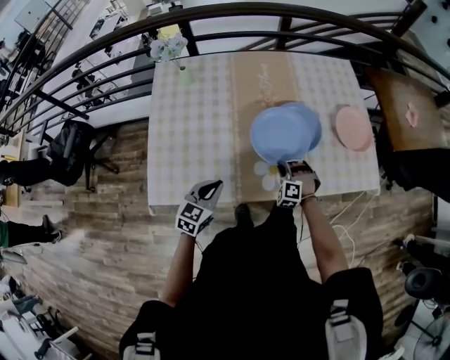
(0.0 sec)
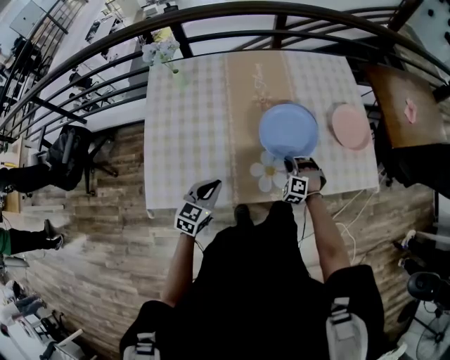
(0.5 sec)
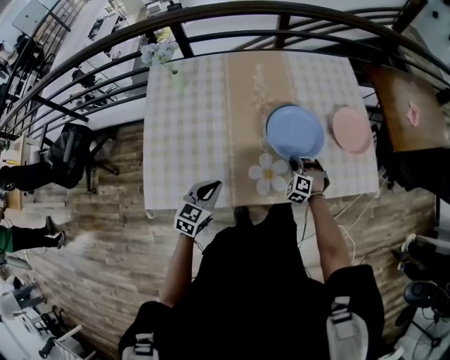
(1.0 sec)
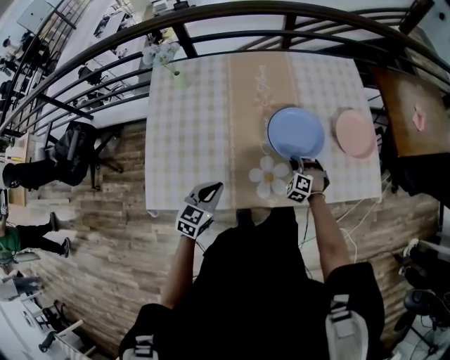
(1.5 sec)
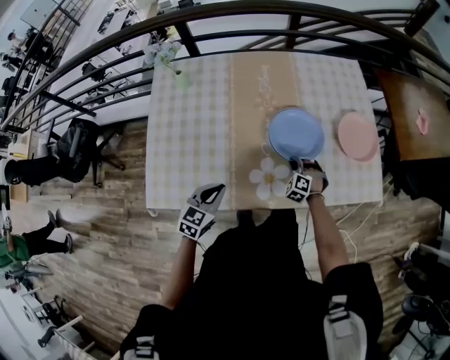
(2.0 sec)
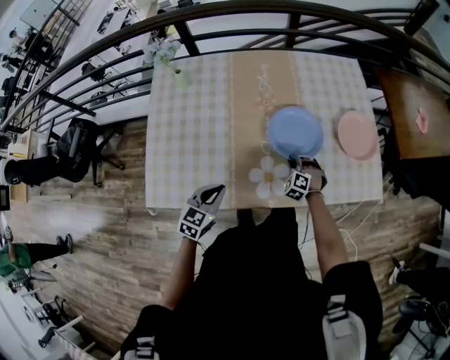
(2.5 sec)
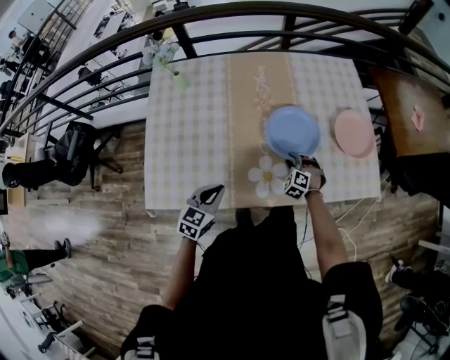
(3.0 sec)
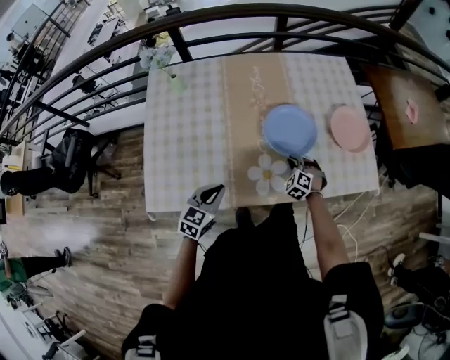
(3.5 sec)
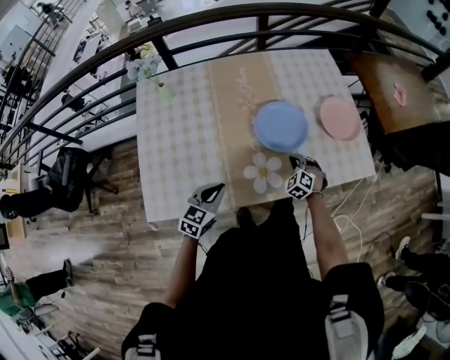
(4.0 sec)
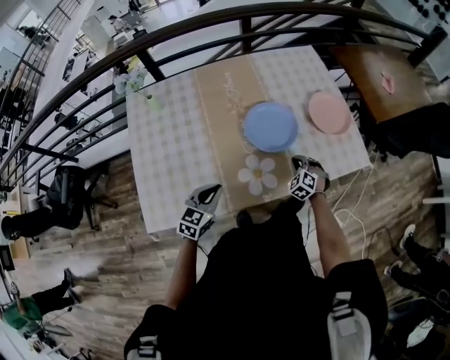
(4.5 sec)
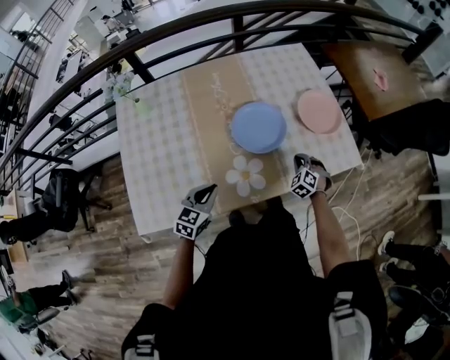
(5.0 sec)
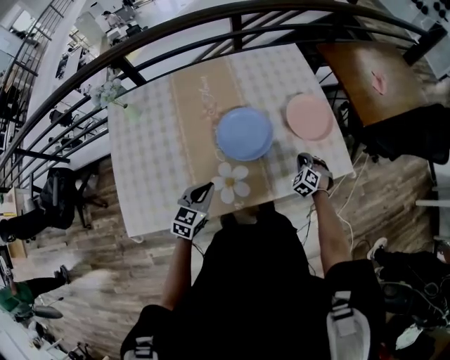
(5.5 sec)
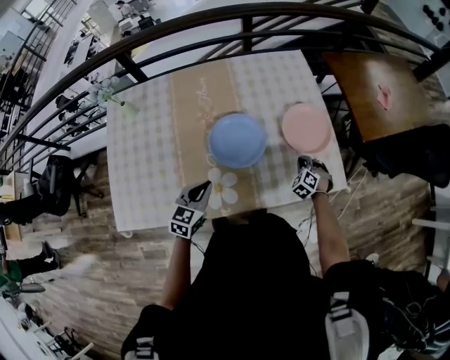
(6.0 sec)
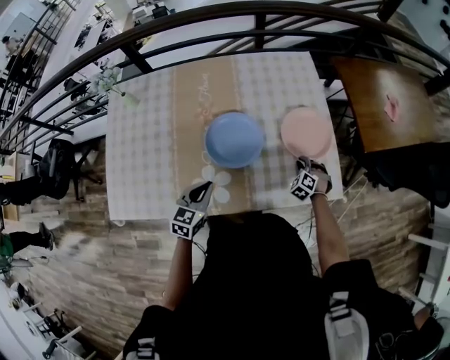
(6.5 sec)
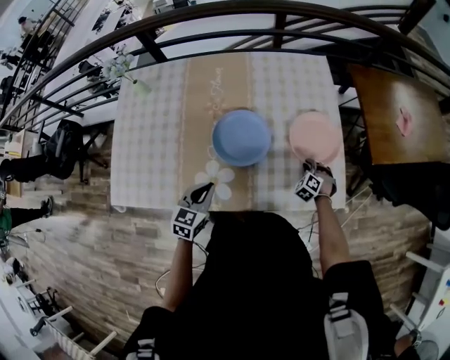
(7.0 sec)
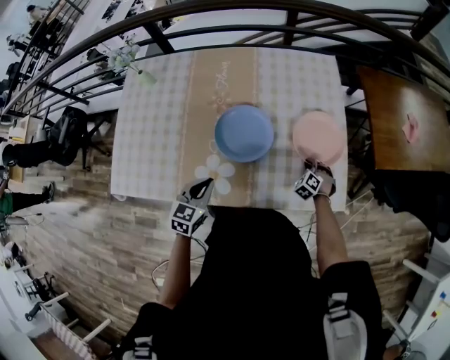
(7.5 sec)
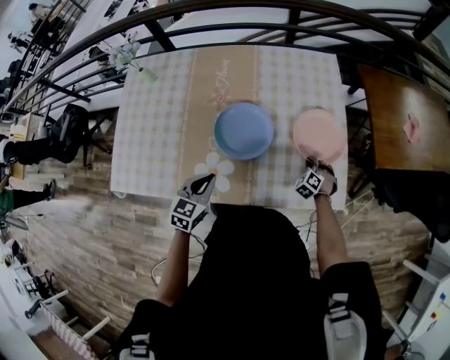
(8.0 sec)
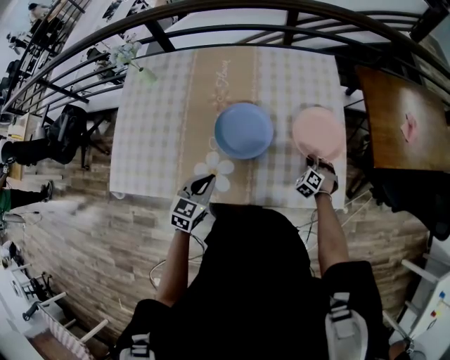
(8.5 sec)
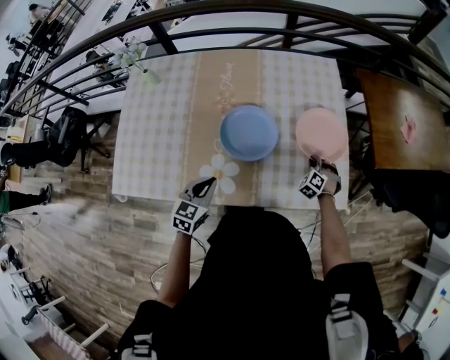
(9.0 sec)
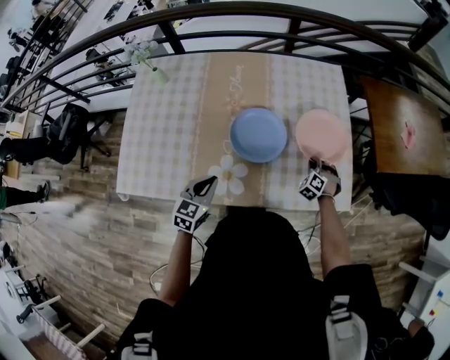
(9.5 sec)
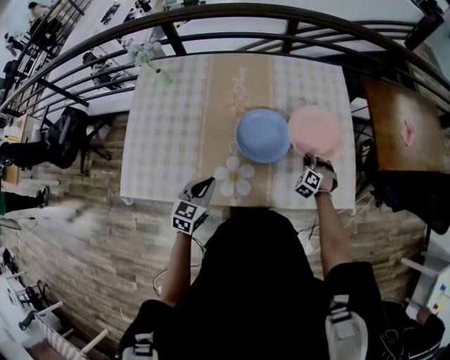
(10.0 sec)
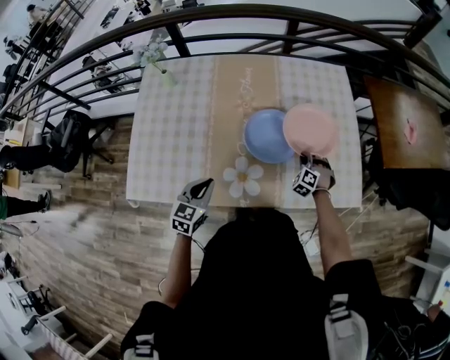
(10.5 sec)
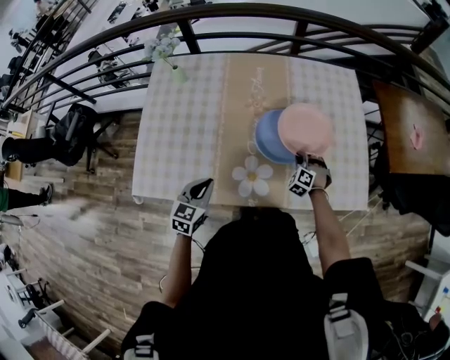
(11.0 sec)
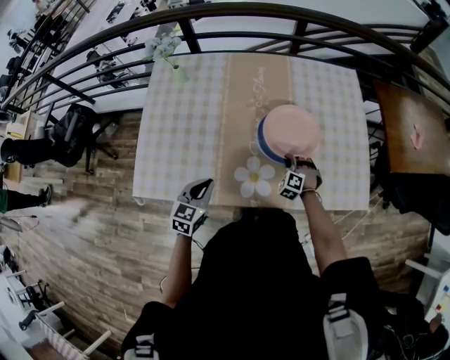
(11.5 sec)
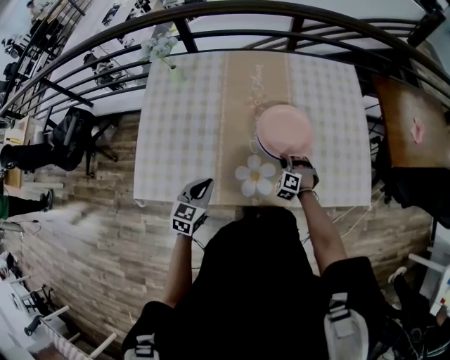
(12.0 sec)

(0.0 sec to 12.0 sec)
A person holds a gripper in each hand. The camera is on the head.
0.0 sec - 2.0 sec: The left gripper changes place by about 5 cm. The right gripper travels forward and to the right by some 10 cm.
2.0 sec - 4.0 sec: The right gripper shifts by approximately 5 cm, and opens and closes again.
4.0 sec - 6.0 sec: The right gripper travels to the right and forward by approximately 25 cm. The left gripper heads forward and to the right, covering about 20 cm.
6.0 sec - 8.0 sec: The right gripper shifts by about 5 cm. The left gripper shifts some 5 cm to the right.
8.0 sec - 10.0 sec: The right gripper heads to the left and upward, covering roughly 10 cm; the left gripper shifts roughly 10 cm to the left and backward.
10.0 sec - 12.0 sec: The right gripper is displaced to the left by roughly 20 cm. The left gripper is displaced to the left by roughly 10 cm.

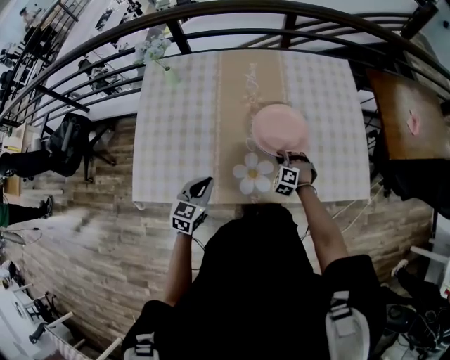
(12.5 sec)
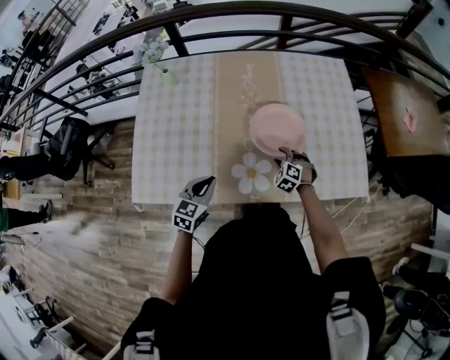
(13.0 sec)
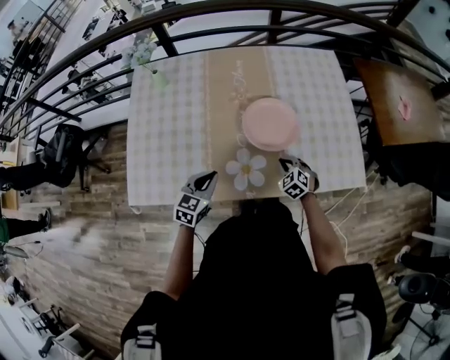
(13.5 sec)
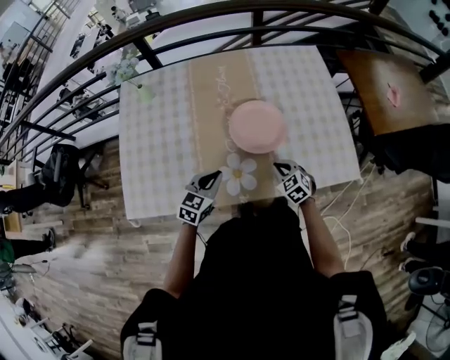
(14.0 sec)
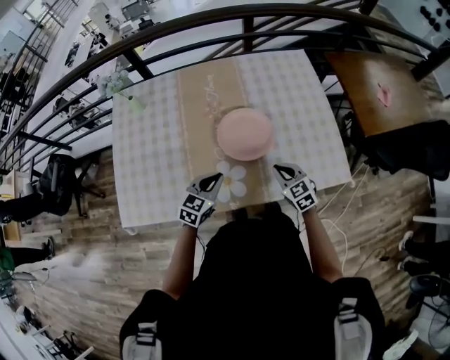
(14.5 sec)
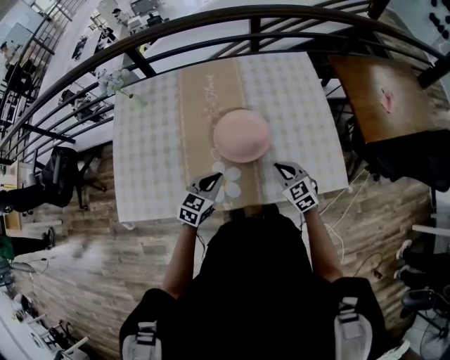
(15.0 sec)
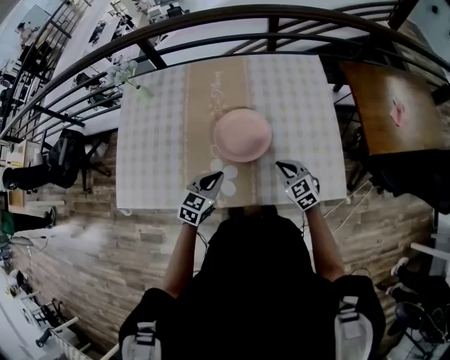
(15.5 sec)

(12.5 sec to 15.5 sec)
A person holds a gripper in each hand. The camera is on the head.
12.5 sec - 14.0 sec: The right gripper shifts about 10 cm to the right, backward and upward, rotates around the line of its fingers by about 40 degrees, clockwise from behind, and opens and closes again; the left gripper heads to the right, covering roughly 10 cm.
14.0 sec - 15.5 sec: The right gripper heads to the right and upward, covering roughly 15 cm. Meanwhile the left gripper is displaced to the right by some 10 cm.

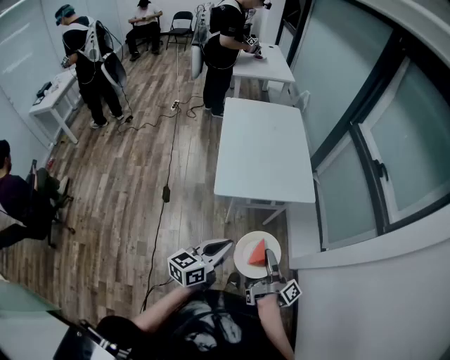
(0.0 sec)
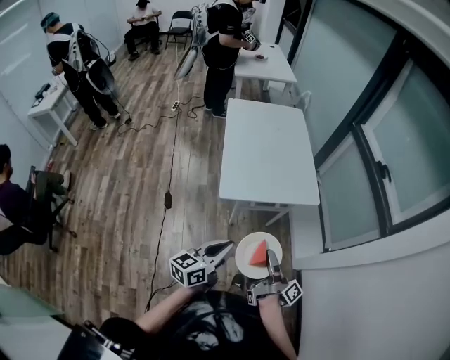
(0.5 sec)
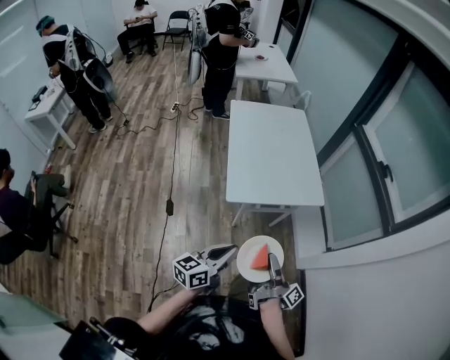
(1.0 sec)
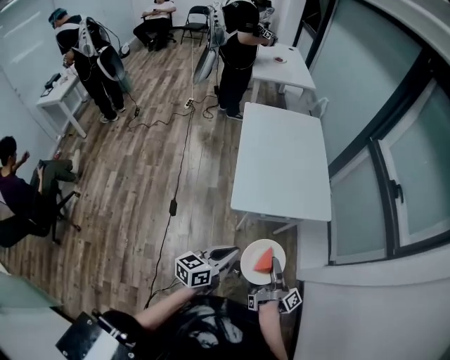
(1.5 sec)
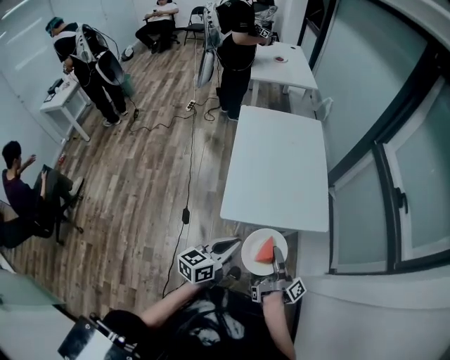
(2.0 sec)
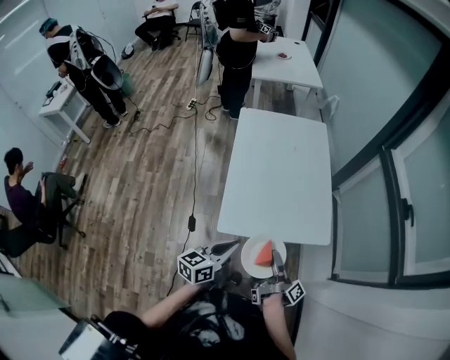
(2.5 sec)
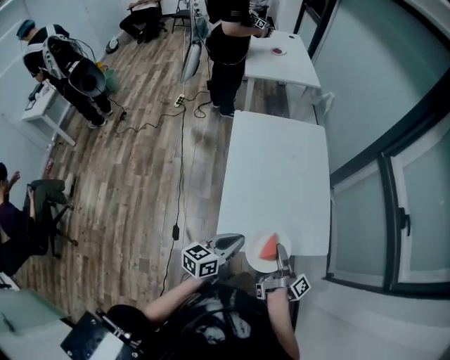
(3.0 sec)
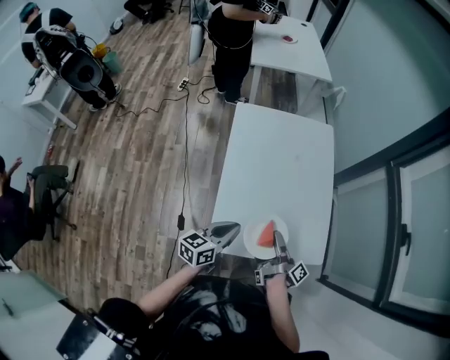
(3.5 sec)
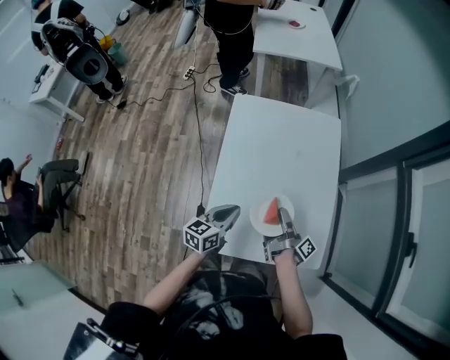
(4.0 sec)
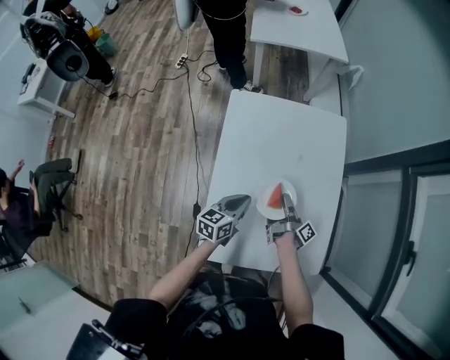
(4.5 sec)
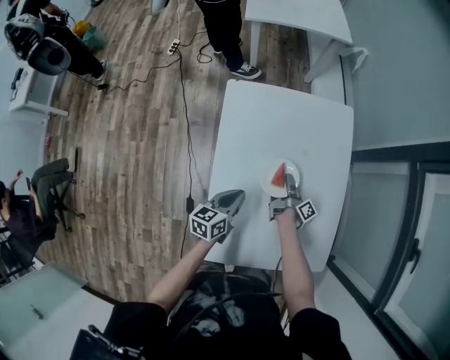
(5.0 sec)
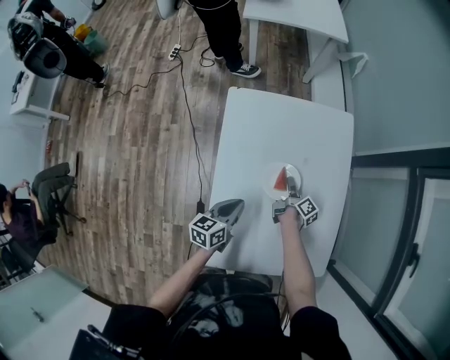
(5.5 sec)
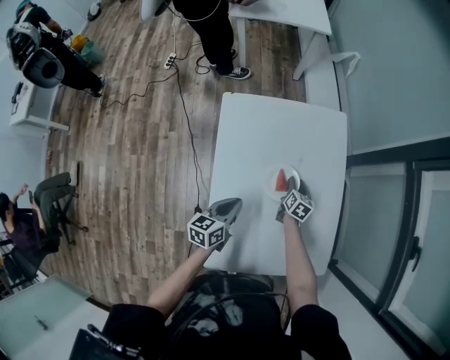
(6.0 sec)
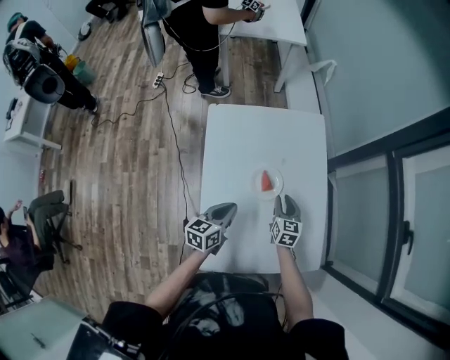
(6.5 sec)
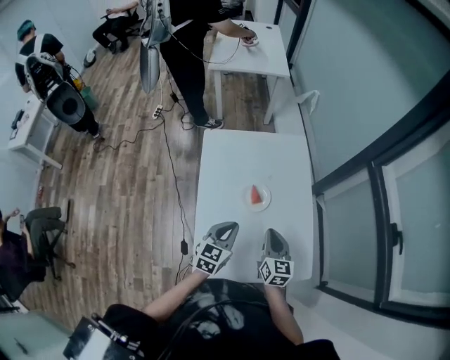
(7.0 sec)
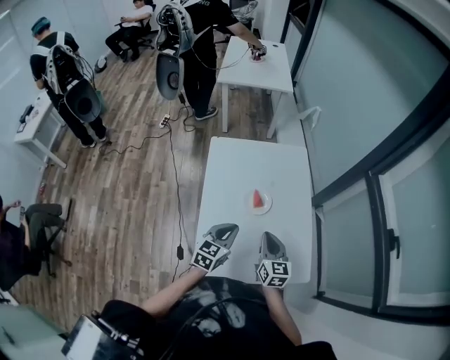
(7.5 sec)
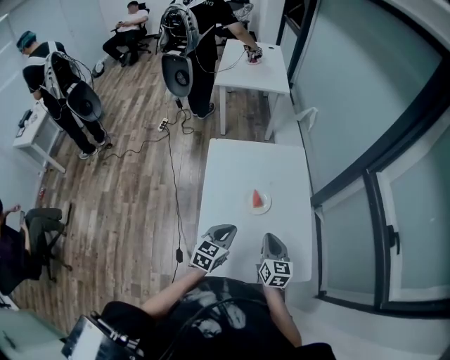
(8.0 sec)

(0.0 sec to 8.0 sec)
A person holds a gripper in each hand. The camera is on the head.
0.0 sec - 2.0 sec: The left gripper changes place by roughly 15 cm.
2.0 sec - 4.0 sec: The left gripper moves some 40 cm.
4.0 sec - 6.0 sec: The left gripper changes place by approximately 15 cm.
6.0 sec - 8.0 sec: The left gripper changes place by about 15 cm, and changes its angle by about 30 degrees.

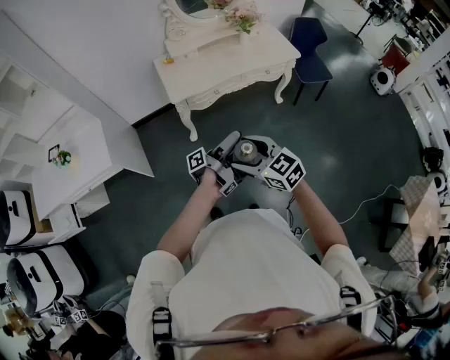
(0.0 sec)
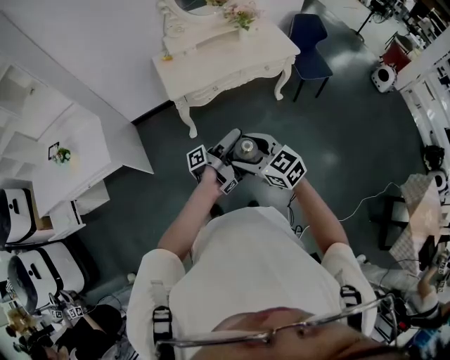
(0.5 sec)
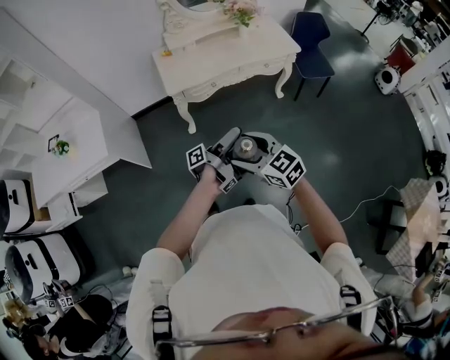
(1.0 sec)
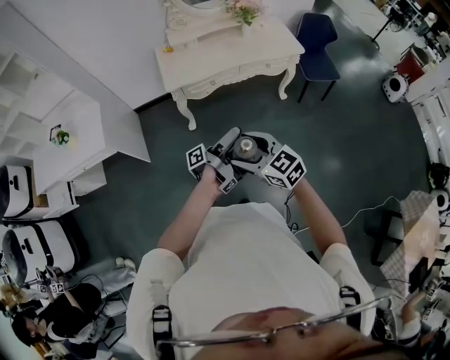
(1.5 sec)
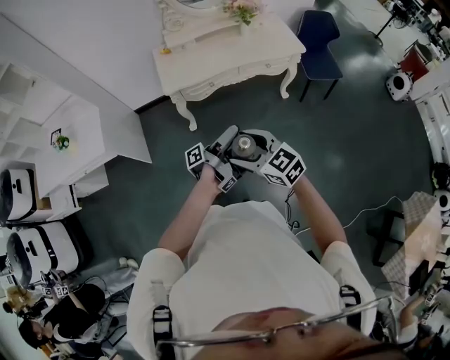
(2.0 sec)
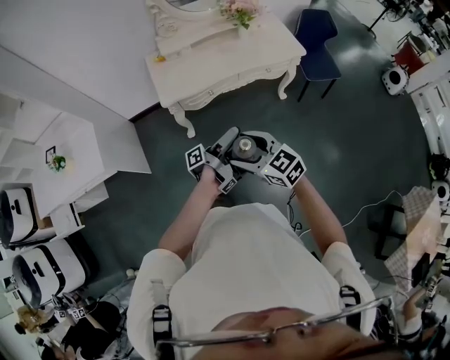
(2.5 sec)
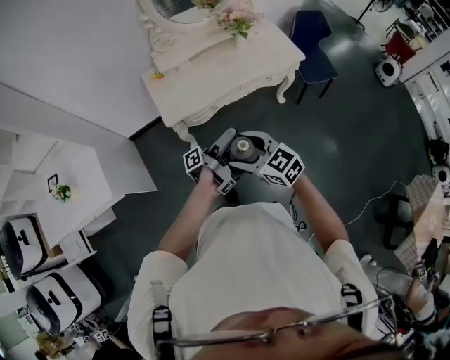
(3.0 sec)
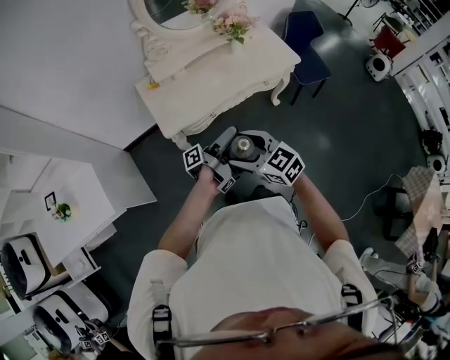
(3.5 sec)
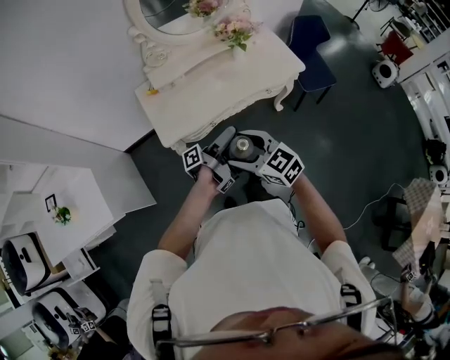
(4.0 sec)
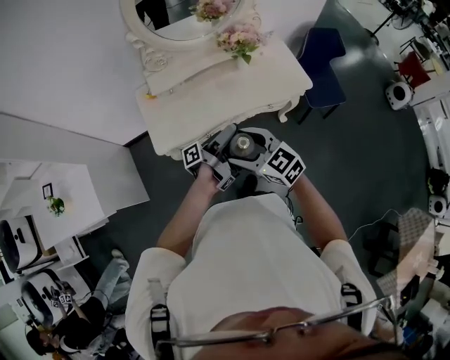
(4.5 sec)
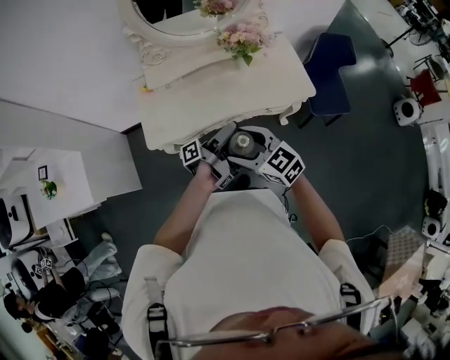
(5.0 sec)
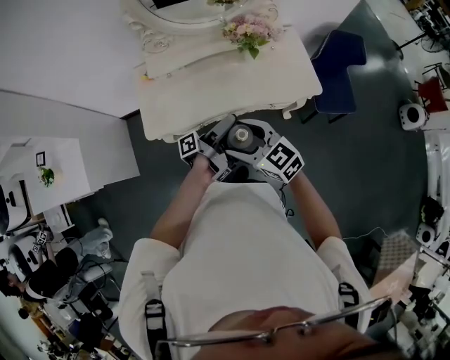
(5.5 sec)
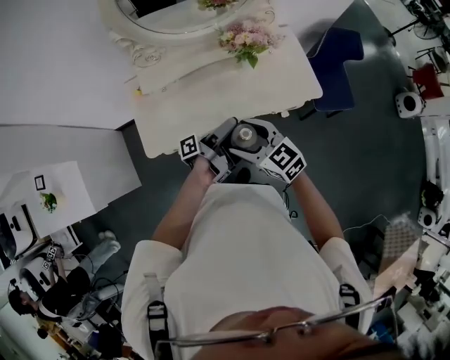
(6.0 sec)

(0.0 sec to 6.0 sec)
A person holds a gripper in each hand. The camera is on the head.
0.0 sec - 2.0 sec: The right gripper shifts by approximately 10 cm.
2.0 sec - 4.0 sec: The right gripper changes place by some 30 cm.
4.0 sec - 6.0 sec: The right gripper moves about 25 cm.
